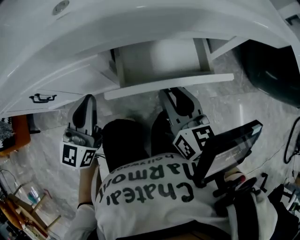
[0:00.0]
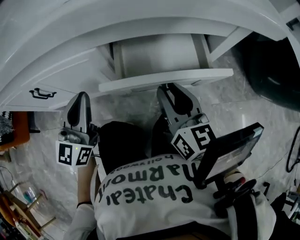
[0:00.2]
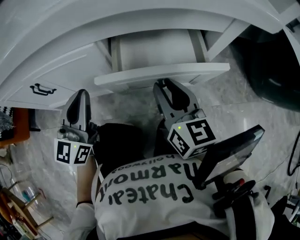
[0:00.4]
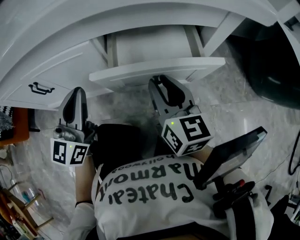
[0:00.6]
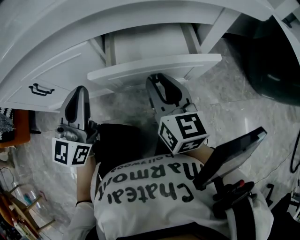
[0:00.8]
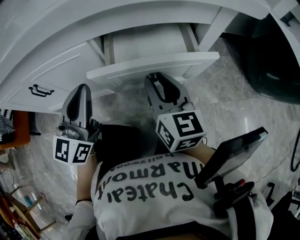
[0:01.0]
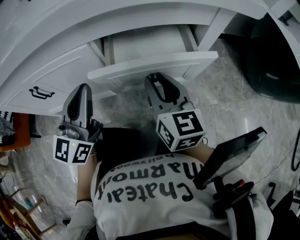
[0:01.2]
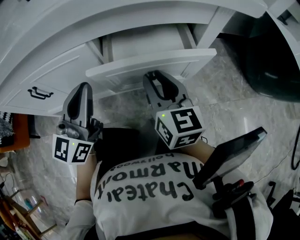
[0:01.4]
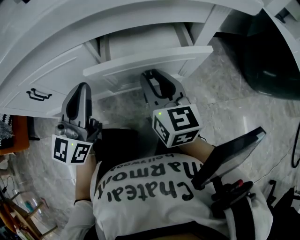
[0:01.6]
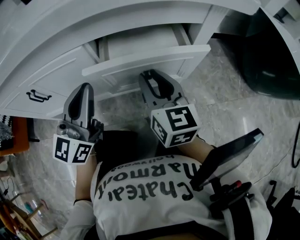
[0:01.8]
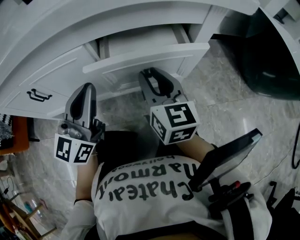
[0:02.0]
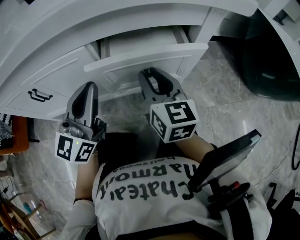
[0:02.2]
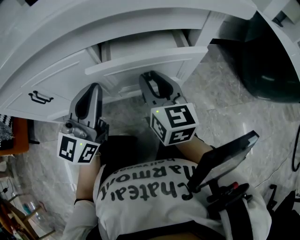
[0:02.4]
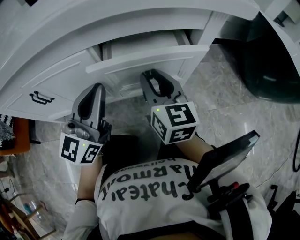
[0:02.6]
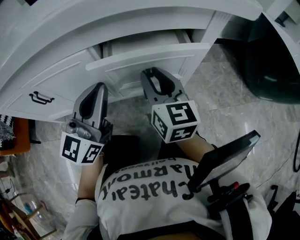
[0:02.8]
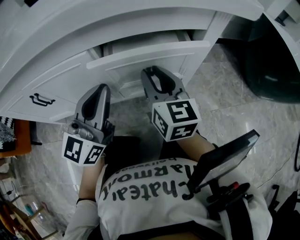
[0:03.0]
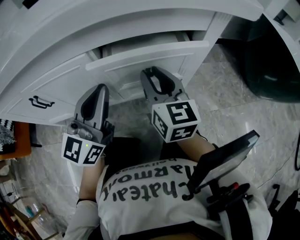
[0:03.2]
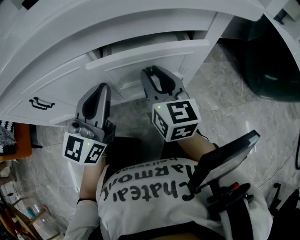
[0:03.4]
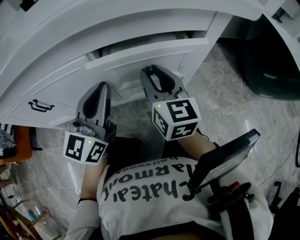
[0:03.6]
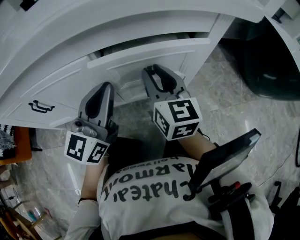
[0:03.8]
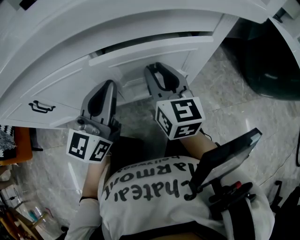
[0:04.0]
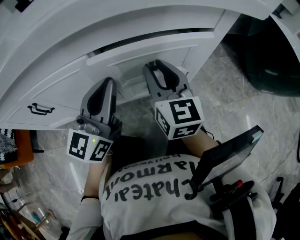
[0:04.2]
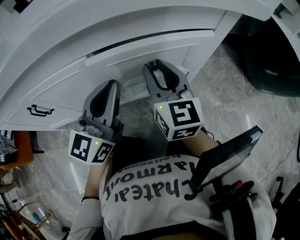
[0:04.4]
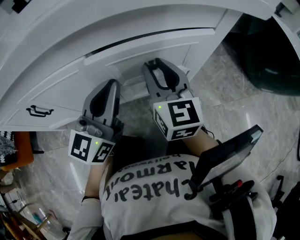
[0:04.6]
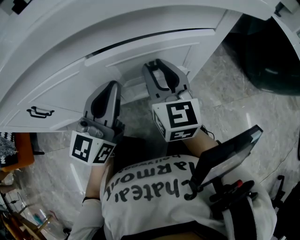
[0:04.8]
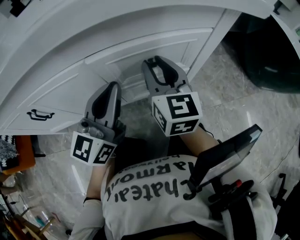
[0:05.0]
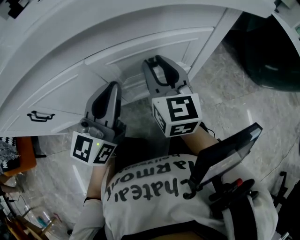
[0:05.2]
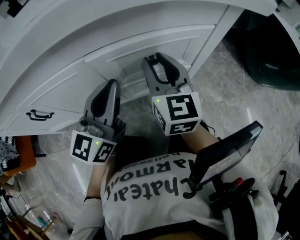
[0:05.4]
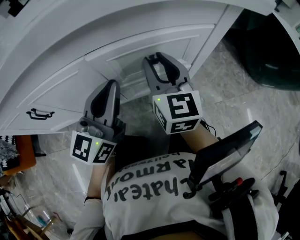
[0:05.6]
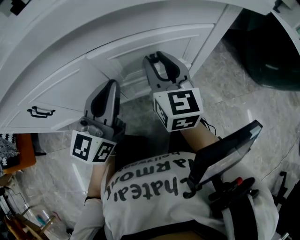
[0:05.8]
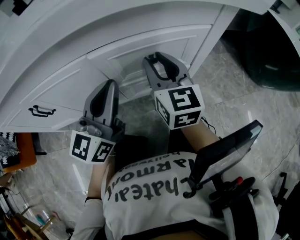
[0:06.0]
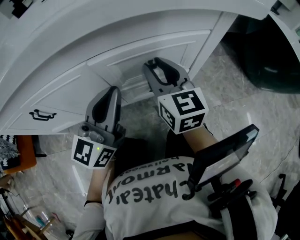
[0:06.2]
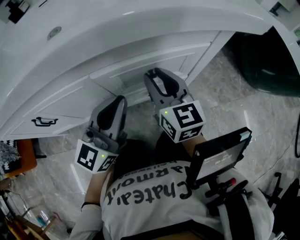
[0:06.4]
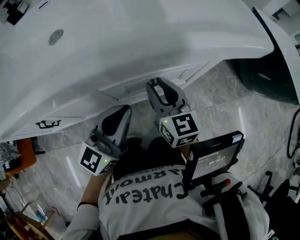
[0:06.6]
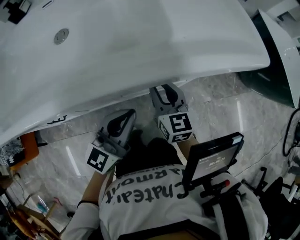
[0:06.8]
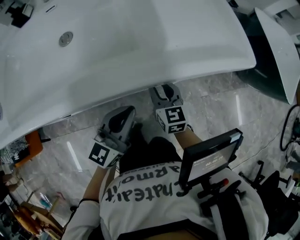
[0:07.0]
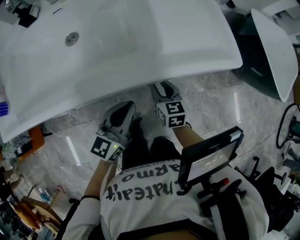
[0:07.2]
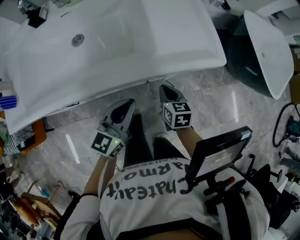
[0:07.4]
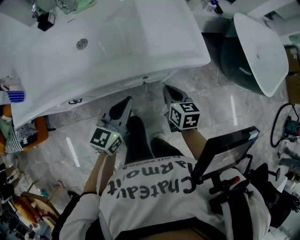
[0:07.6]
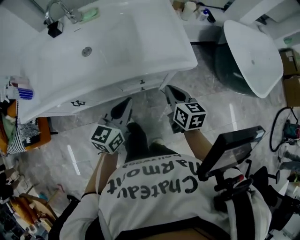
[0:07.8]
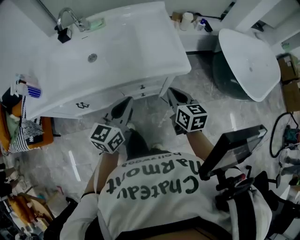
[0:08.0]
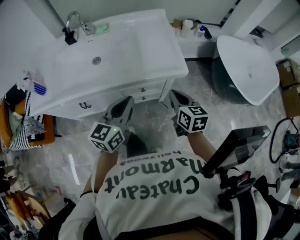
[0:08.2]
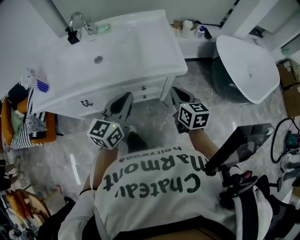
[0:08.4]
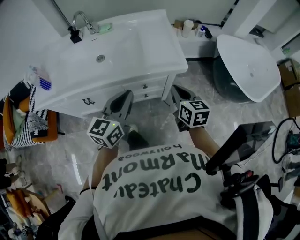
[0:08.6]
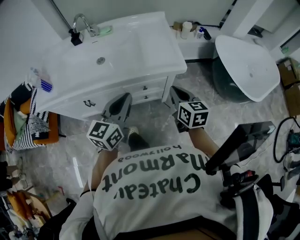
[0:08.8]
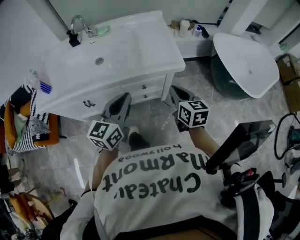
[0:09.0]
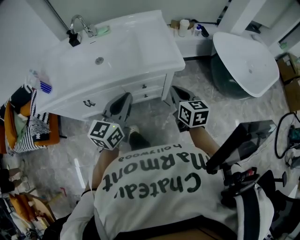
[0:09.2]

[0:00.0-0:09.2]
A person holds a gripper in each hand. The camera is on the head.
0:00.0 to 0:01.6: The left gripper ends up about 5 cm from where it was.
0:01.6 to 0:03.0: There are only small adjustments of the grippers.
0:03.0 to 0:06.2: The grippers make only small movements.
0:06.2 to 0:07.6: The left gripper is displaced upward by about 20 cm, and swivels roughly 20 degrees. The right gripper is displaced upward, to the right and backward by roughly 20 cm, changes its angle by roughly 30 degrees, and closes up.
0:07.6 to 0:09.2: Both grippers move upward and backward, some 20 cm.

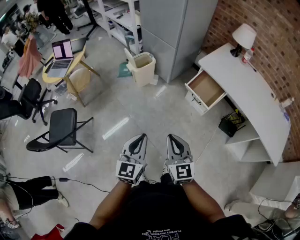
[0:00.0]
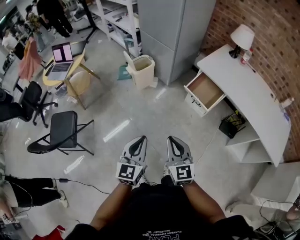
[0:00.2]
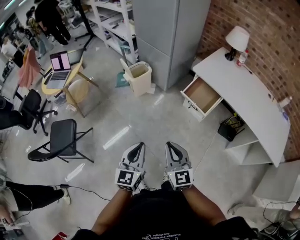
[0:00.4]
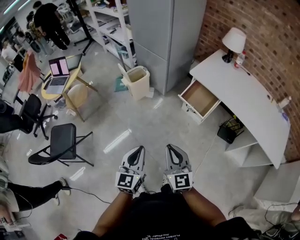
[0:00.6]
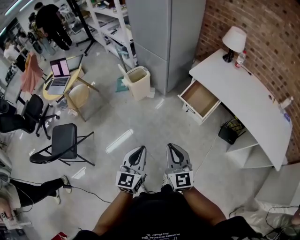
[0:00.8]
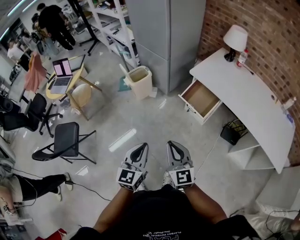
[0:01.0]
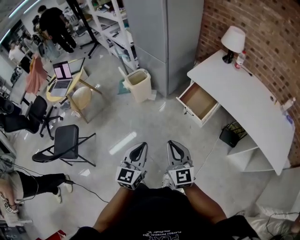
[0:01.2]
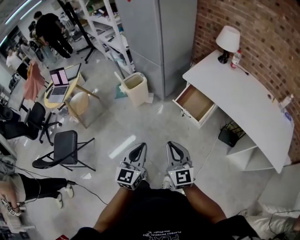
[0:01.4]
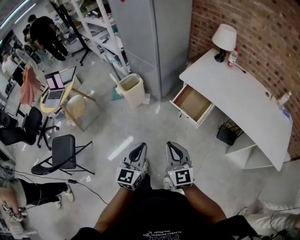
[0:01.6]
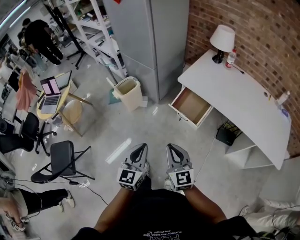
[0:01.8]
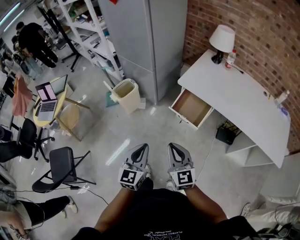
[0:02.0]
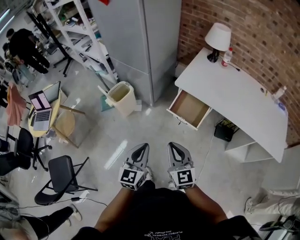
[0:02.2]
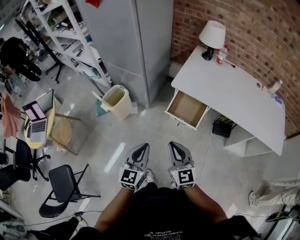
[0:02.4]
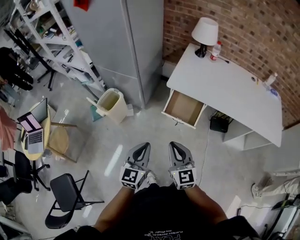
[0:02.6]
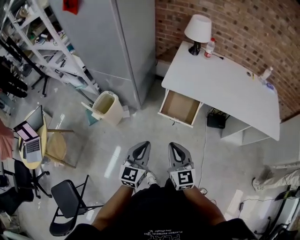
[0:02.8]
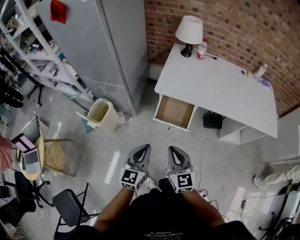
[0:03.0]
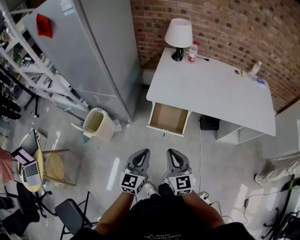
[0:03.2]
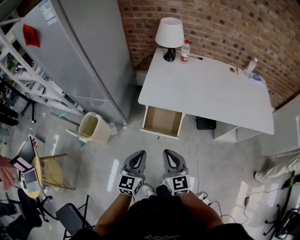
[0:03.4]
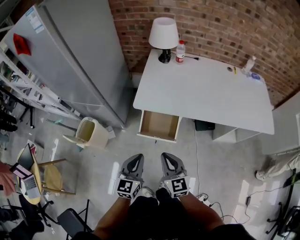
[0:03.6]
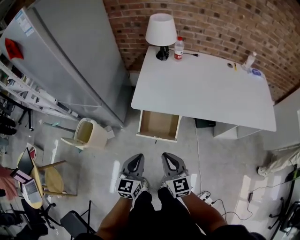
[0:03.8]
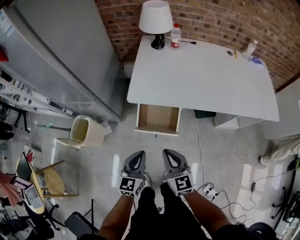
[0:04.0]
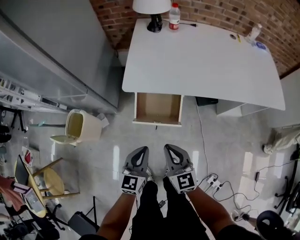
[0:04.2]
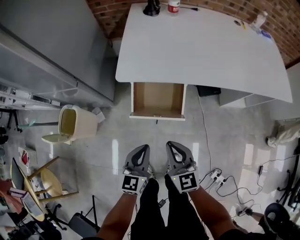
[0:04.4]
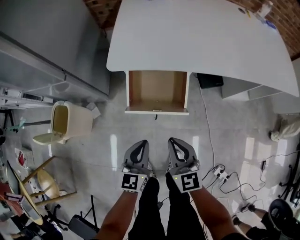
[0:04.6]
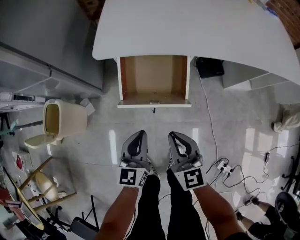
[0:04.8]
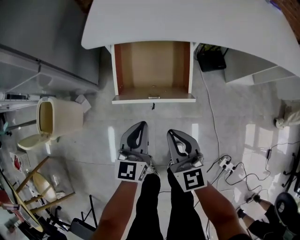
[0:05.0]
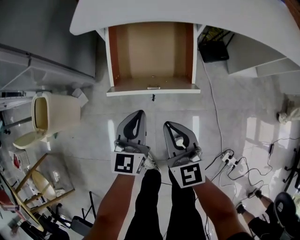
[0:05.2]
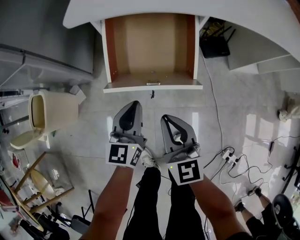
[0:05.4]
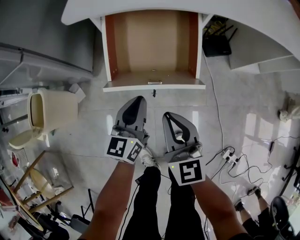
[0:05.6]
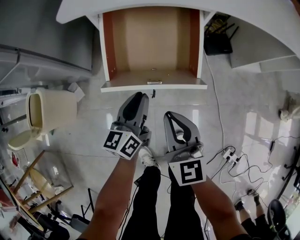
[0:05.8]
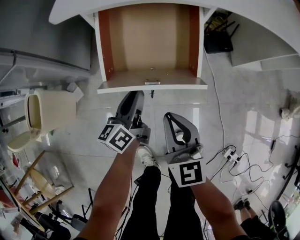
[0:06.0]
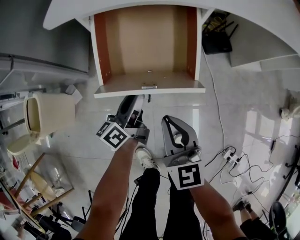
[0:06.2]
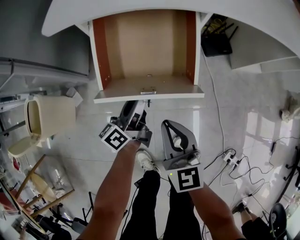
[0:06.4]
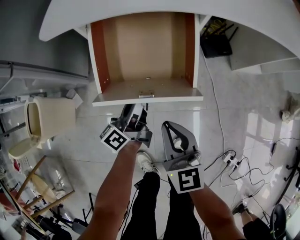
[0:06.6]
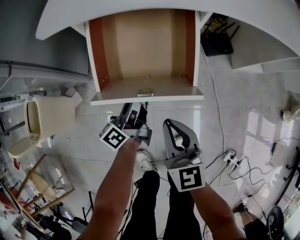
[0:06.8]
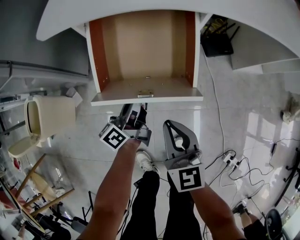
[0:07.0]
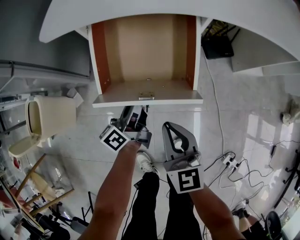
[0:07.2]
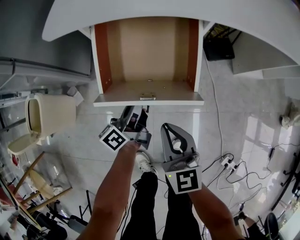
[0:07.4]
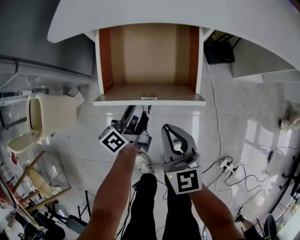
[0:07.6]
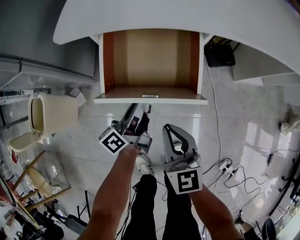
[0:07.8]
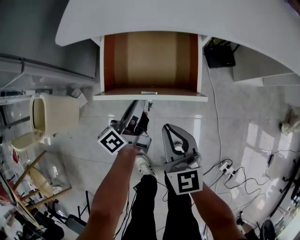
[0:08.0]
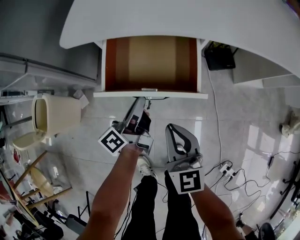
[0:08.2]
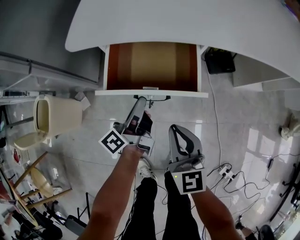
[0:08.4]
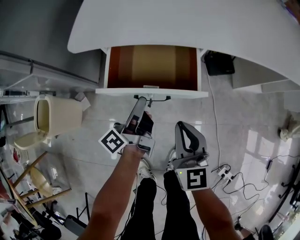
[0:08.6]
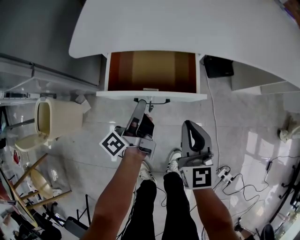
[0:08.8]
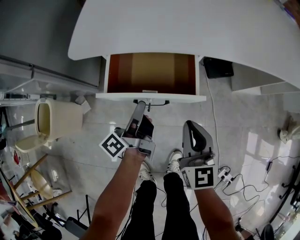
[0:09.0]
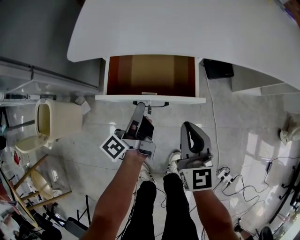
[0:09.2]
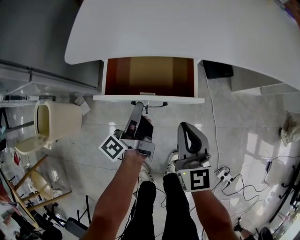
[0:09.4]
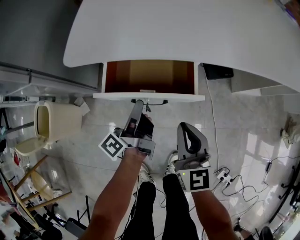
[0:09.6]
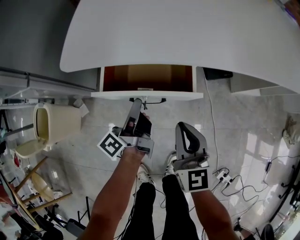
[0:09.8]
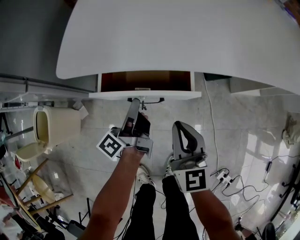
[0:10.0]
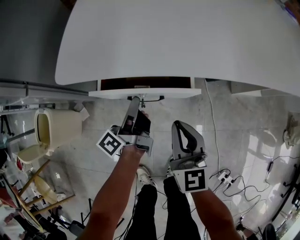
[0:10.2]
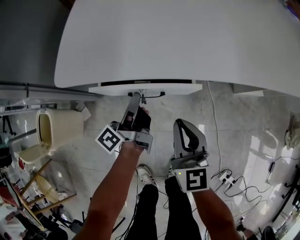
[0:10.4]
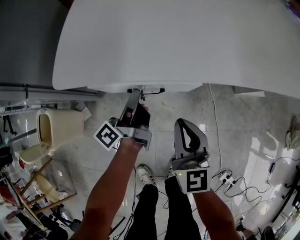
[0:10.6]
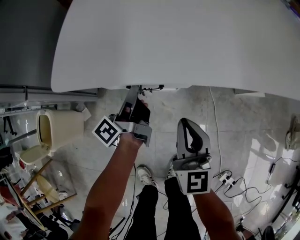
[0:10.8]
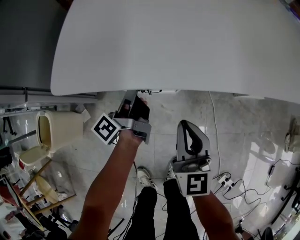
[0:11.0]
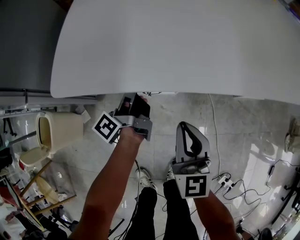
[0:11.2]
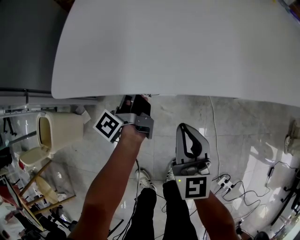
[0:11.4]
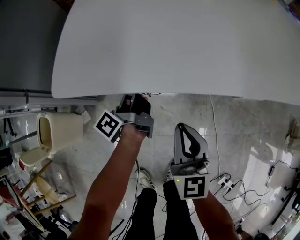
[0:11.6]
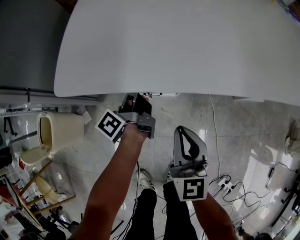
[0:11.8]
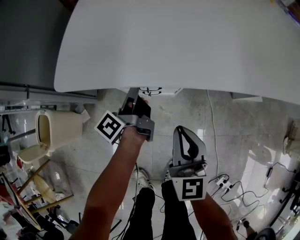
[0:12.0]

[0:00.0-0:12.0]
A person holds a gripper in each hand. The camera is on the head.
0:00.0 to 0:01.6: Both grippers travel together to the right and forward, approximately 15 cm.
0:01.6 to 0:03.0: The right gripper moves about 15 cm, and rotates roughly 30 degrees. Meanwhile the left gripper ends up about 20 cm from where it was, and turns by about 30 degrees.
0:03.0 to 0:04.4: Both grippers travel together downward and forward, some 20 cm.
0:04.4 to 0:06.0: The left gripper travels downward and forward by roughly 30 cm, and swivels some 40 degrees. The right gripper heads downward, covering about 20 cm.
0:06.0 to 0:07.6: The left gripper turns by about 20 degrees.
0:07.6 to 0:09.0: The right gripper heads to the right, covering approximately 5 cm.
0:09.0 to 0:10.4: Both grippers travel together forward, about 5 cm.
0:10.4 to 0:12.0: The left gripper travels forward by roughly 5 cm.

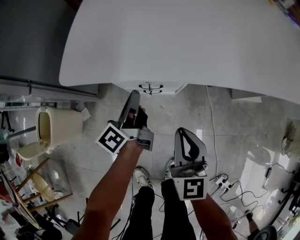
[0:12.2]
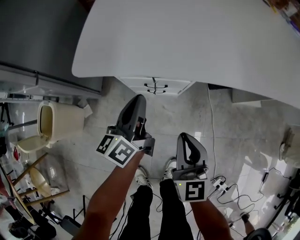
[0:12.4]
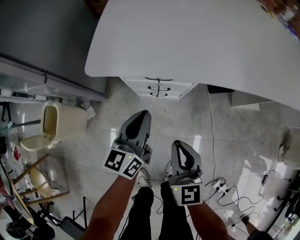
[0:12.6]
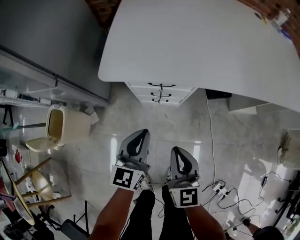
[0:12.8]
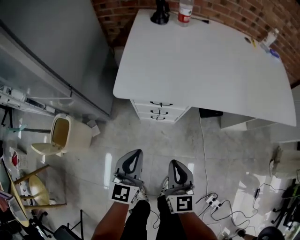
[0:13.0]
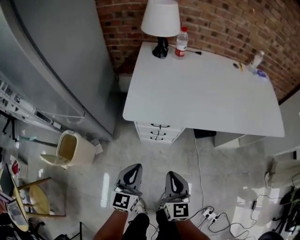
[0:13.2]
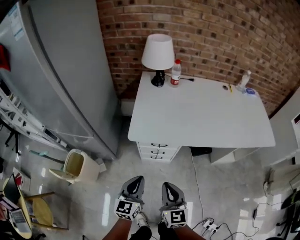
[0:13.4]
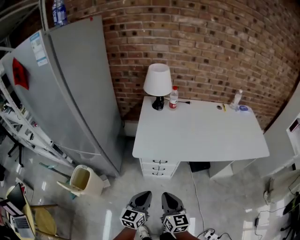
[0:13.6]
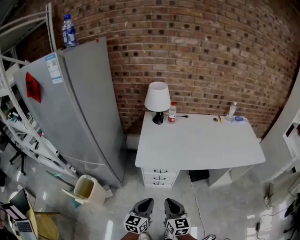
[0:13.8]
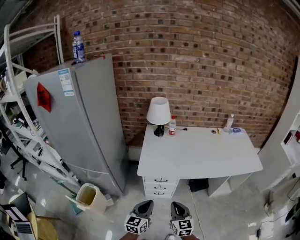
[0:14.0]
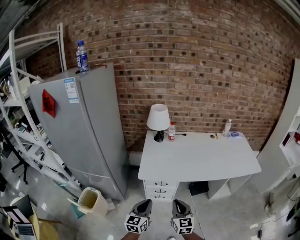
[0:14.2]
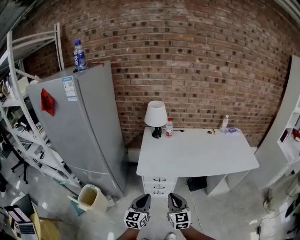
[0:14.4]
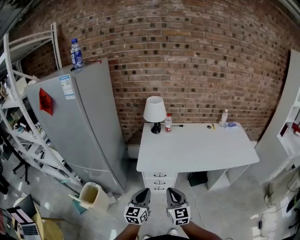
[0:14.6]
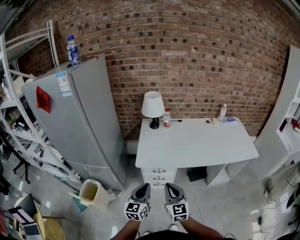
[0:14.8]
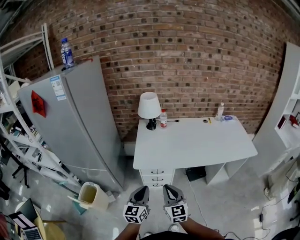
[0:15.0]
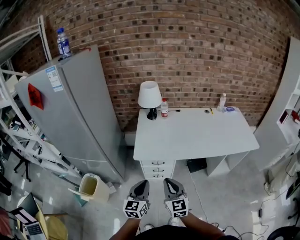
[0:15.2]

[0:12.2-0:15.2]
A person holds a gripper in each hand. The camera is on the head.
0:12.2 to 0:13.8: Both grippers travel together upward and backward, roughly 40 cm. The left gripper rolls clockwise, seen from behind, by approximately 50 degrees.
0:13.8 to 0:15.2: Both grippers travel together upward, about 10 cm.
